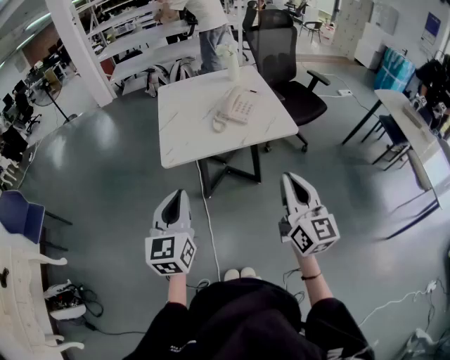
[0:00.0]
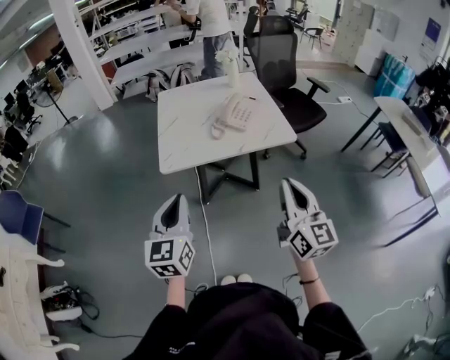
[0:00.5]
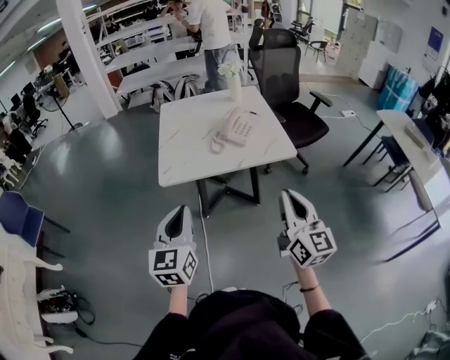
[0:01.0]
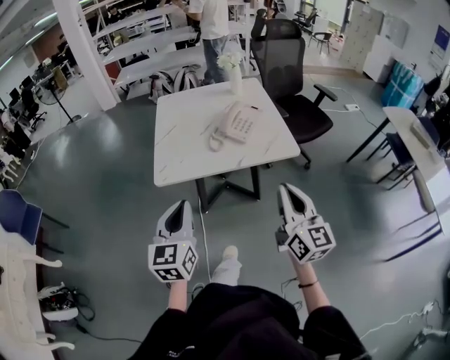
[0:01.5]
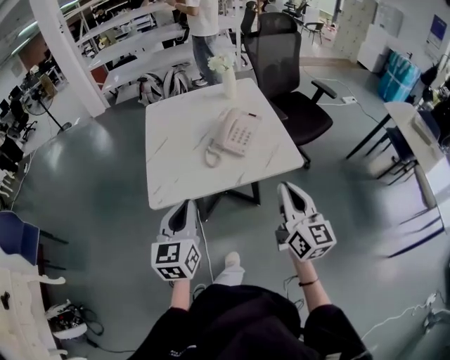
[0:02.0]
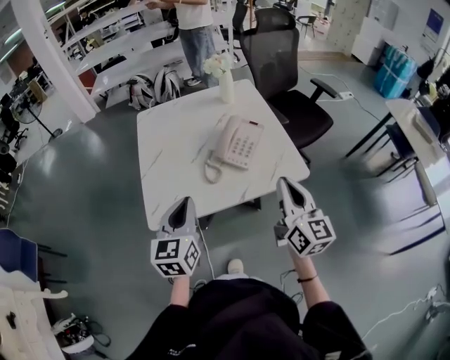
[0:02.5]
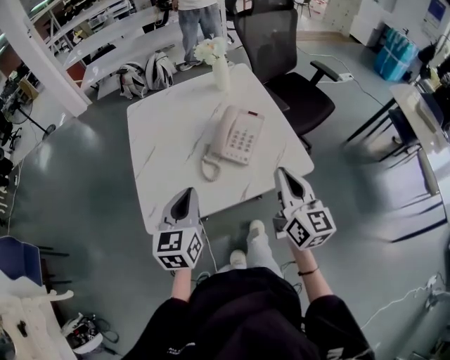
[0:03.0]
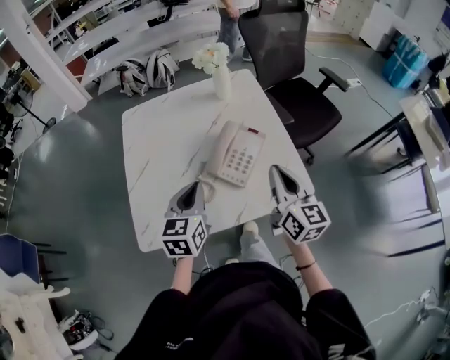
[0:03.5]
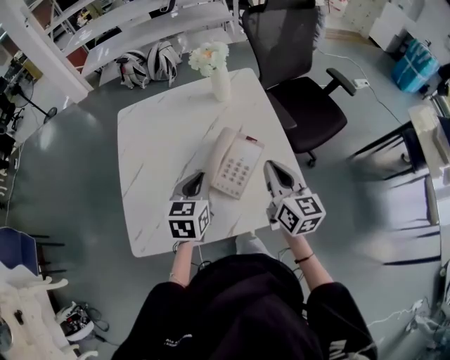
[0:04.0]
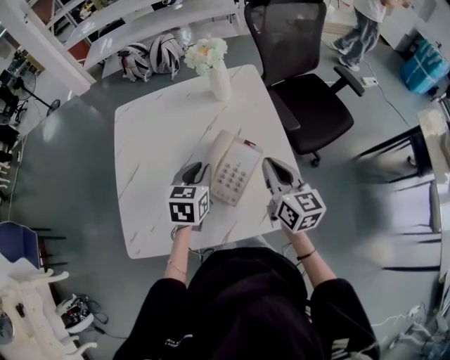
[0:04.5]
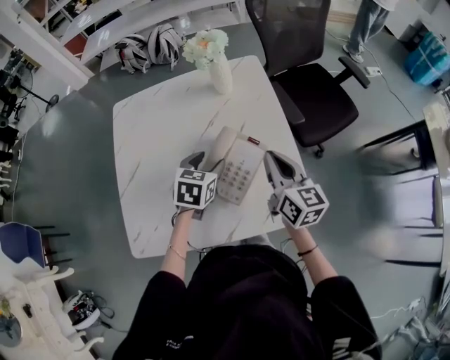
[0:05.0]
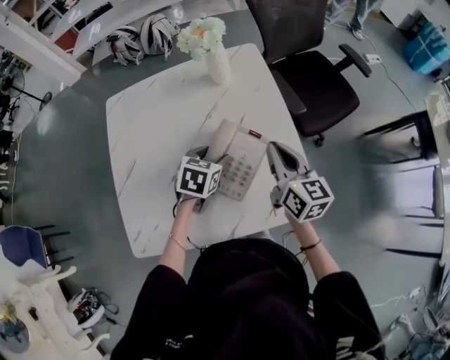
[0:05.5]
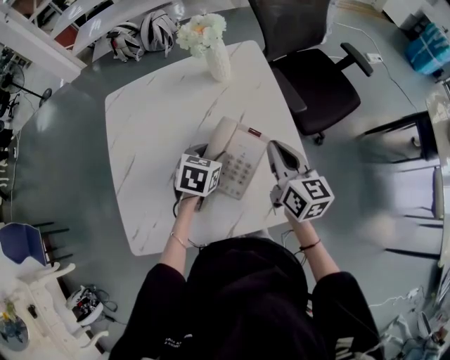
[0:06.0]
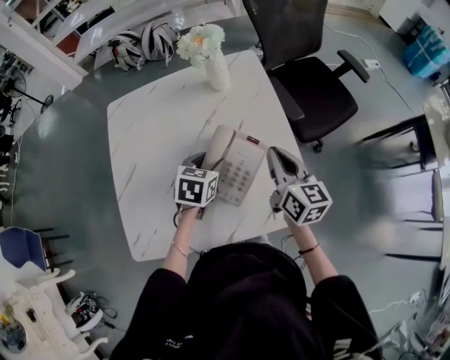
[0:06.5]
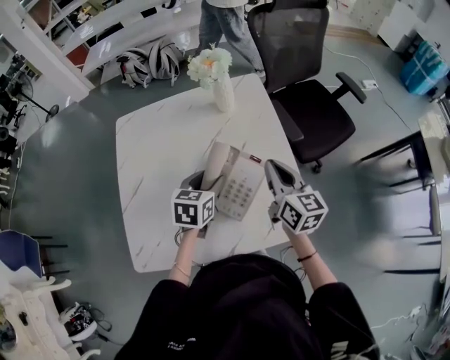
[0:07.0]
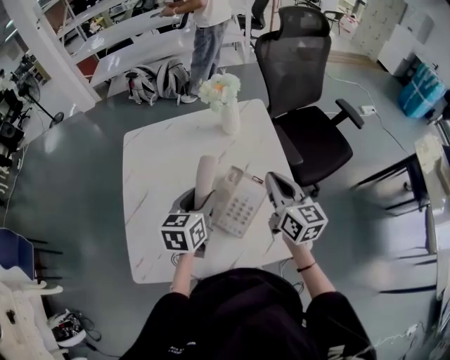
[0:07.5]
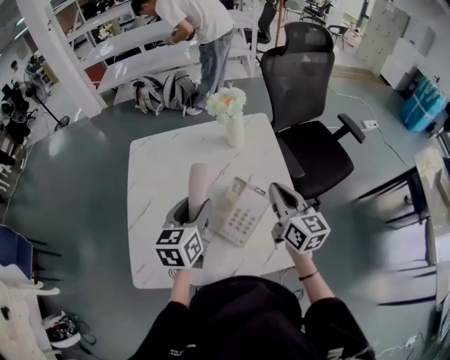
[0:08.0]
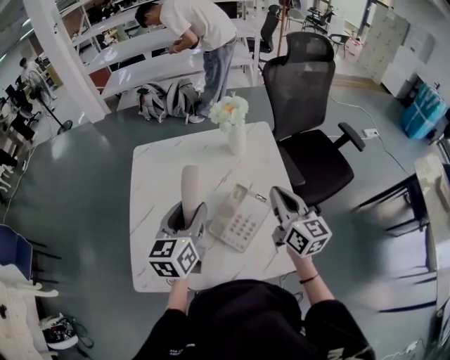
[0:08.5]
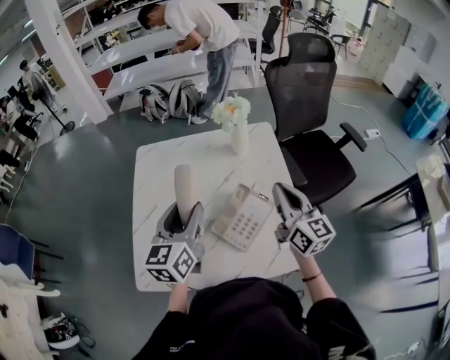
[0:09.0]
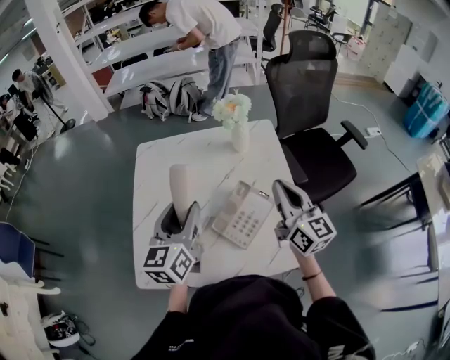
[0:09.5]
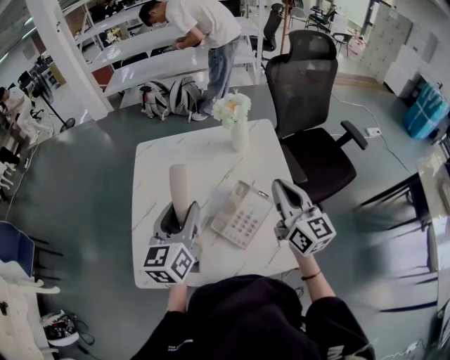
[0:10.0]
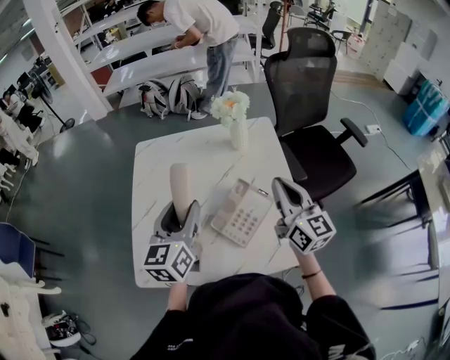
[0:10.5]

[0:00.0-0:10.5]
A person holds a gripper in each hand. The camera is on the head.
0:00.0 to 0:02.0: The two grippers go about 20 cm forward.
0:02.0 to 0:04.0: The grippers both shift forward by some 35 cm. The left gripper rotates approximately 20 degrees.
0:04.0 to 0:06.5: The right gripper heads forward, covering some 10 cm; the left gripper goes approximately 15 cm forward and downward, turns by some 20 degrees, and opens its fingers.
0:06.5 to 0:08.5: The left gripper shifts some 20 cm upward and to the left, and tips its fingers upward by roughly 30 degrees, while the right gripper moves upward, roughly 10 cm.
0:08.5 to 0:10.5: The grippers stay close to where they were, moving slightly.

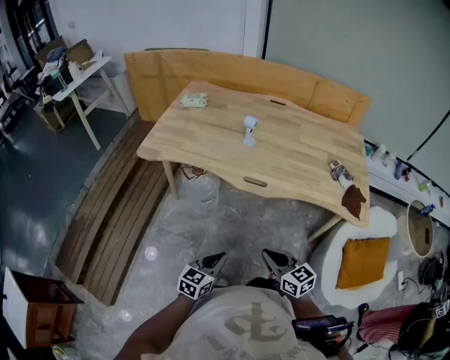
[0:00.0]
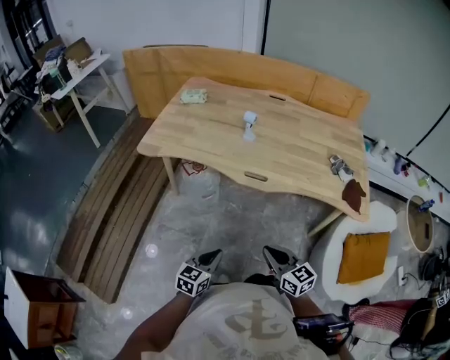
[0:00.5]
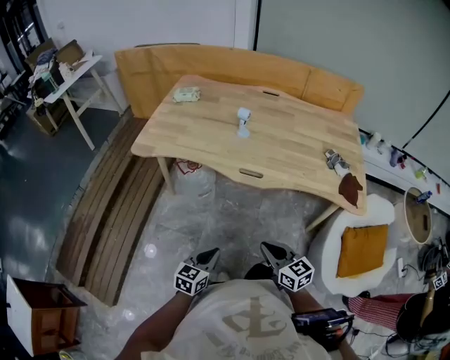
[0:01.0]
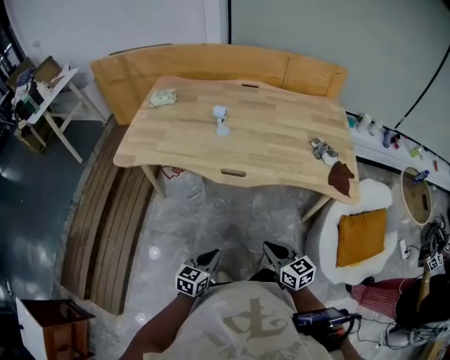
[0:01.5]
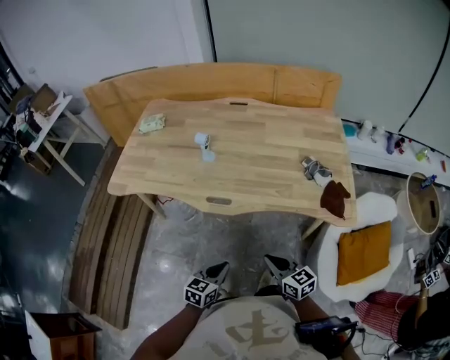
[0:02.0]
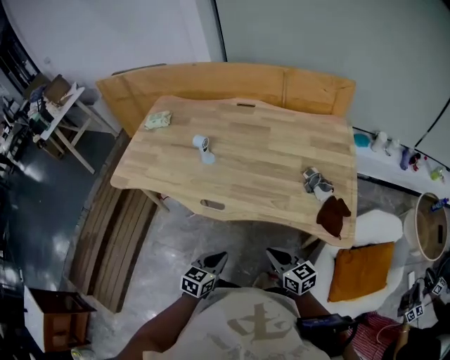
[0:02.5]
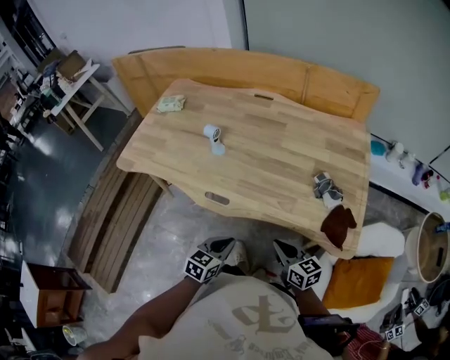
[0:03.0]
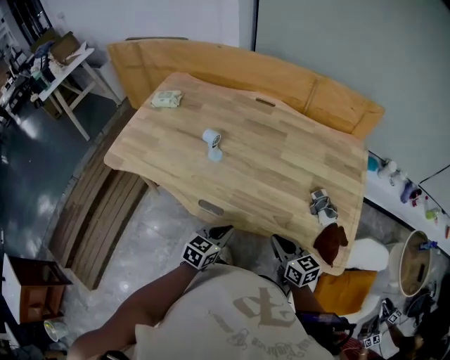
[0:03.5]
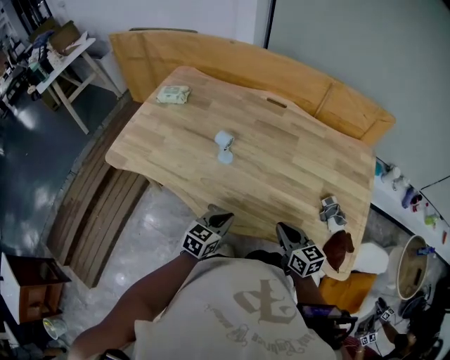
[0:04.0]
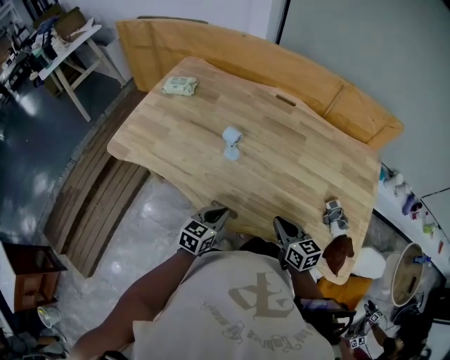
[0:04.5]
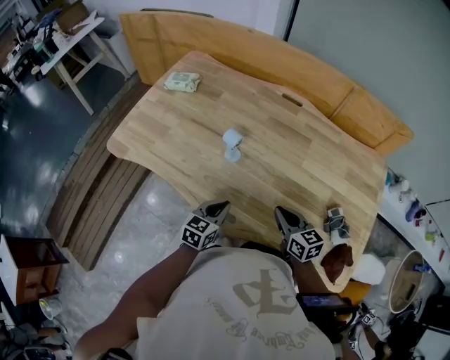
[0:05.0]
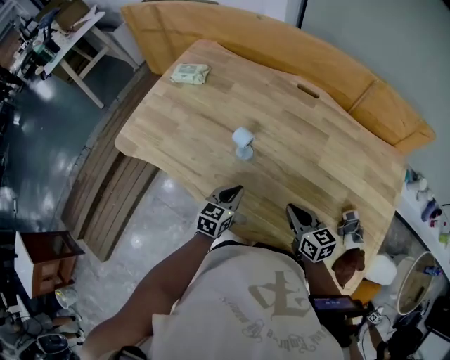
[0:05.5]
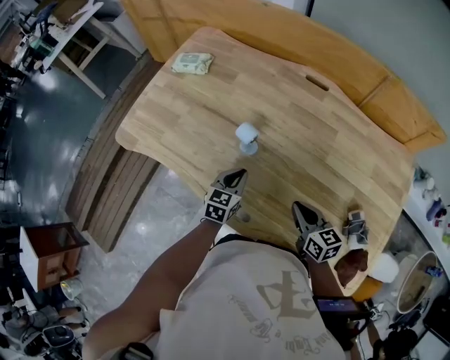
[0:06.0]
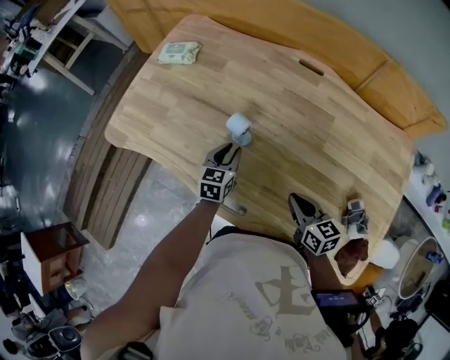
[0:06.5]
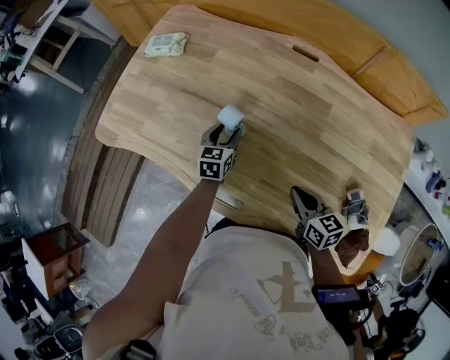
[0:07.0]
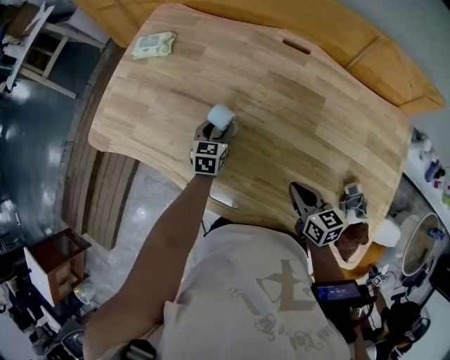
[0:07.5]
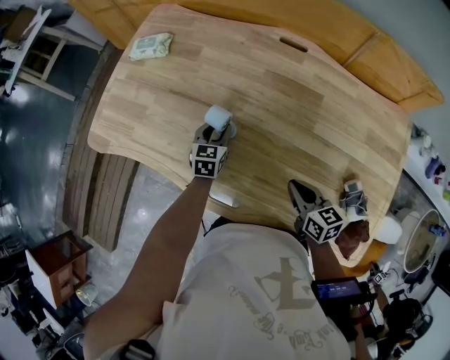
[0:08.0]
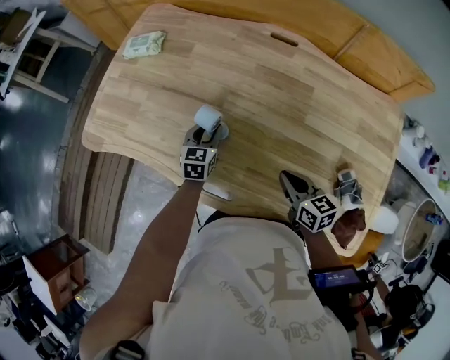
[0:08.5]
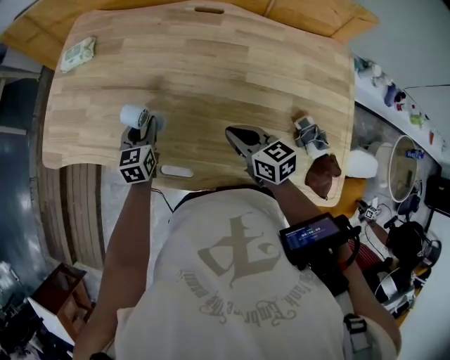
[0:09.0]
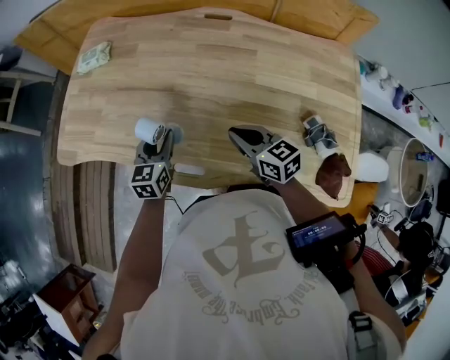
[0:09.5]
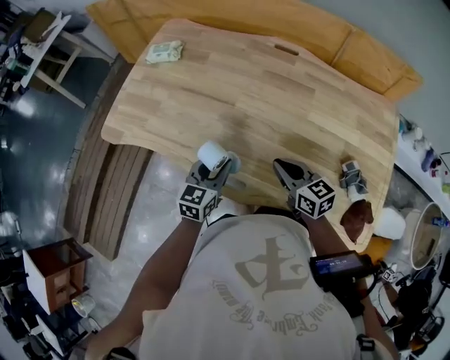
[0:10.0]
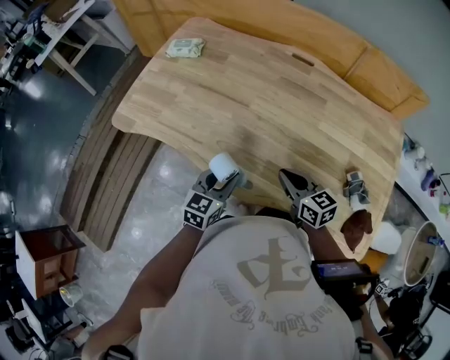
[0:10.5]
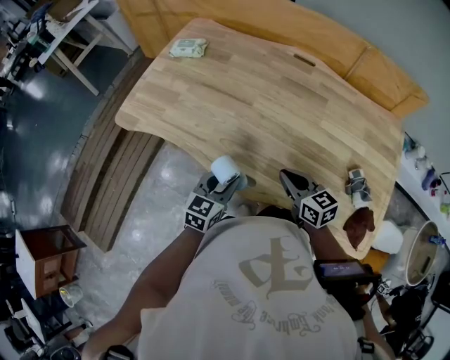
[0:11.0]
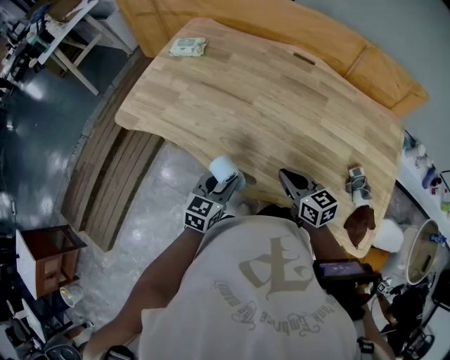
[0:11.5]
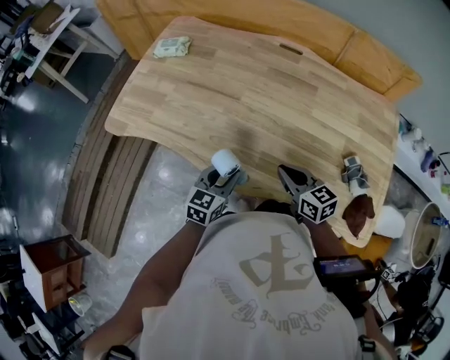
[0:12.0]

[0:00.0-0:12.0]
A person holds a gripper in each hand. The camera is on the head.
0:00.0 to 0:02.0: Both grippers move to the right and forward, roughly 15 cm.
0:02.0 to 0:04.0: The grippers both shift forward by approximately 25 cm.
0:04.0 to 0:06.0: The grippers both shift forward by some 15 cm.
0:06.0 to 0:08.0: The left gripper moves forward, some 10 cm, and opens up.
0:08.0 to 0:10.0: The left gripper heads backward and upward, covering approximately 25 cm. The right gripper heads to the left and upward, covering roughly 10 cm.
0:10.0 to 0:12.0: The left gripper shifts by approximately 5 cm.

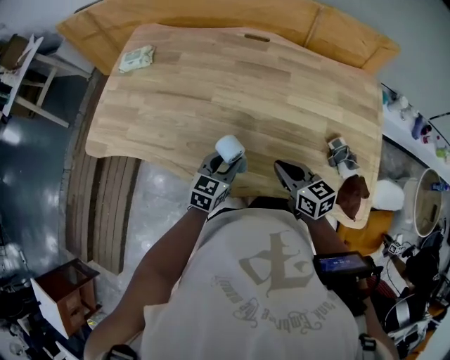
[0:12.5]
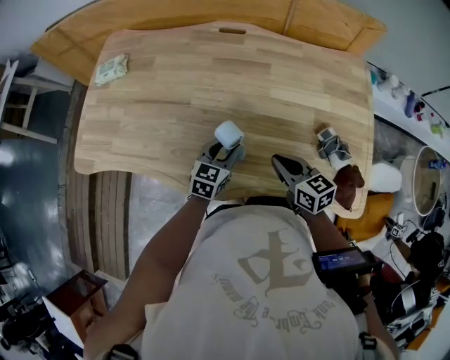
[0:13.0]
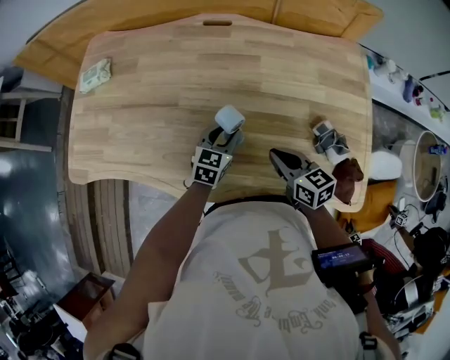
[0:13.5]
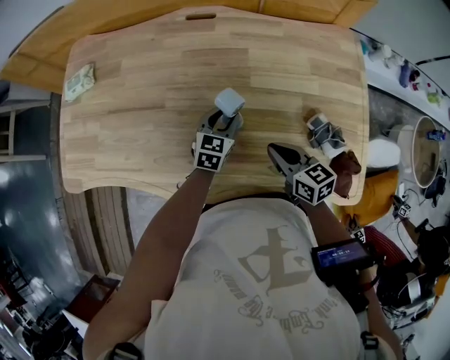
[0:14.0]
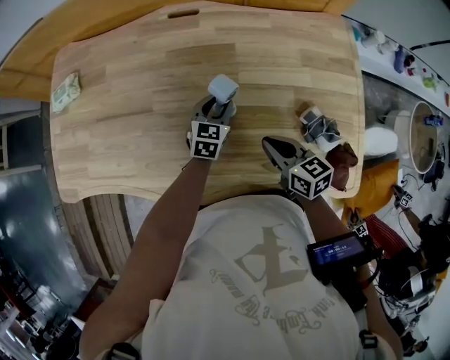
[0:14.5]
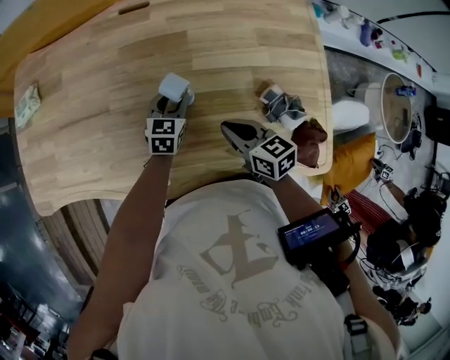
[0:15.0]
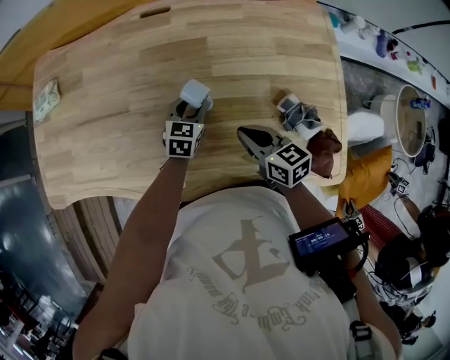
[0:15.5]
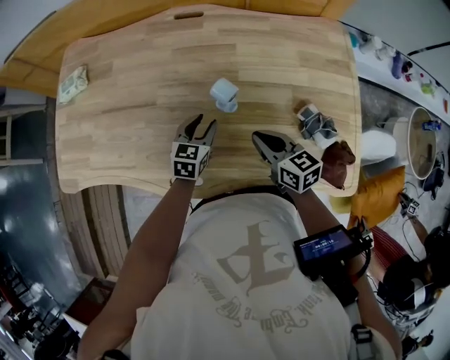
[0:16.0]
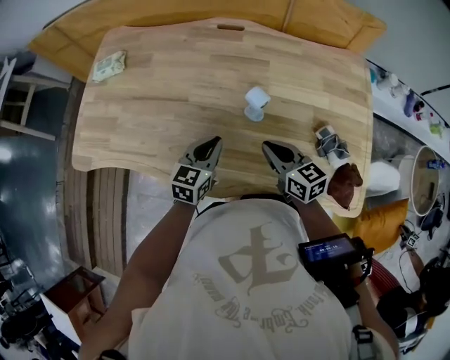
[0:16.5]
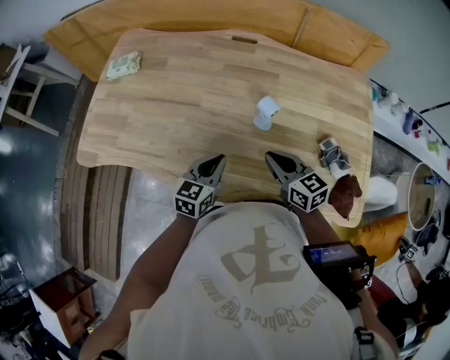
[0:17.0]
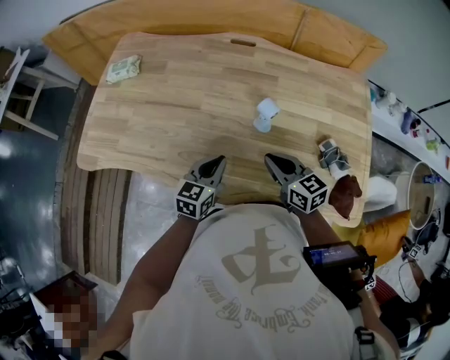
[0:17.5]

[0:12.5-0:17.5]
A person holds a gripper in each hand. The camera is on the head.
0:12.5 to 0:15.0: The left gripper is displaced forward, to the right and downward by roughly 25 cm, while the right gripper moves to the right and forward, about 10 cm.
0:15.0 to 0:17.5: The left gripper goes about 25 cm backward, to the left and upward, and closes, while the right gripper travels to the left and upward by roughly 10 cm.
